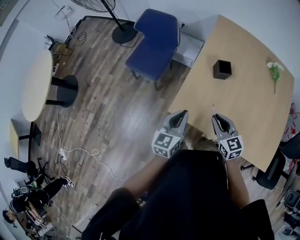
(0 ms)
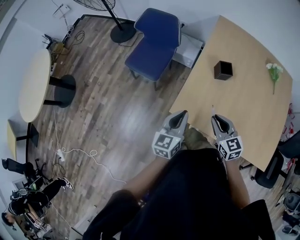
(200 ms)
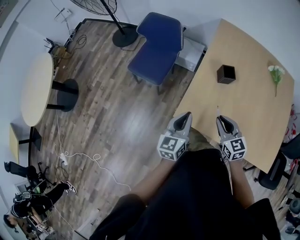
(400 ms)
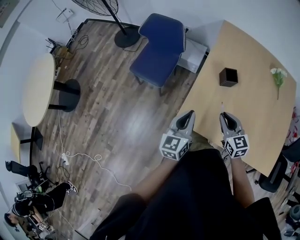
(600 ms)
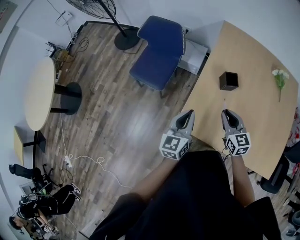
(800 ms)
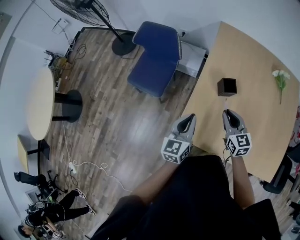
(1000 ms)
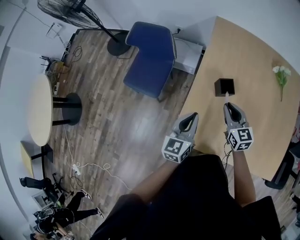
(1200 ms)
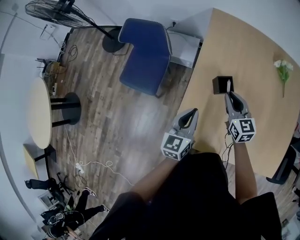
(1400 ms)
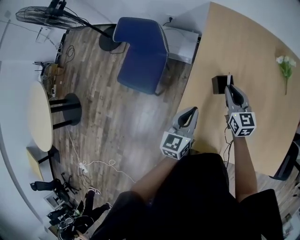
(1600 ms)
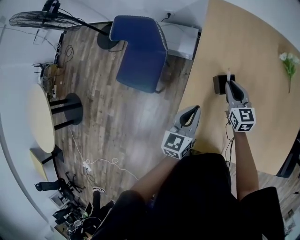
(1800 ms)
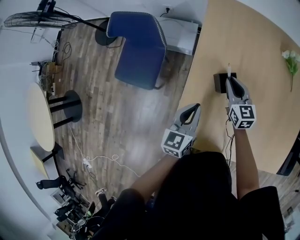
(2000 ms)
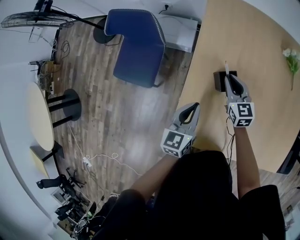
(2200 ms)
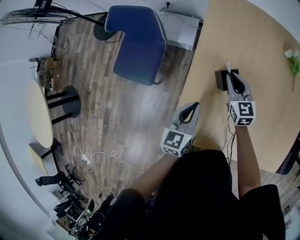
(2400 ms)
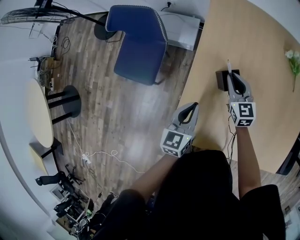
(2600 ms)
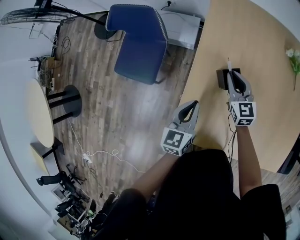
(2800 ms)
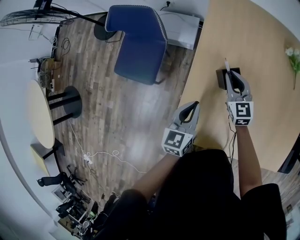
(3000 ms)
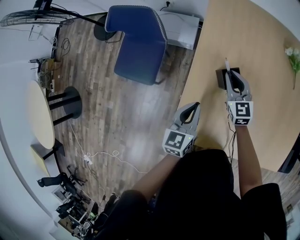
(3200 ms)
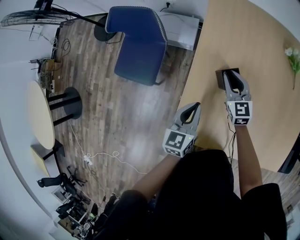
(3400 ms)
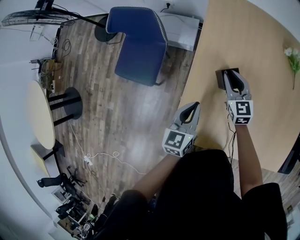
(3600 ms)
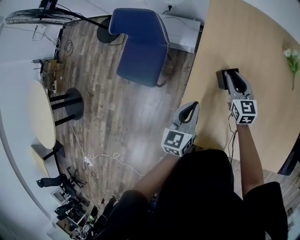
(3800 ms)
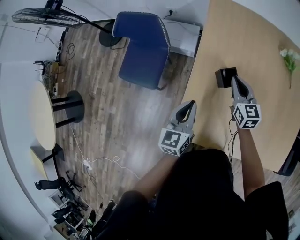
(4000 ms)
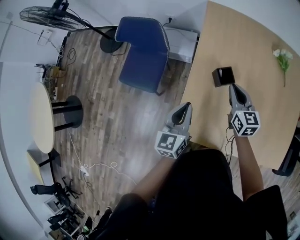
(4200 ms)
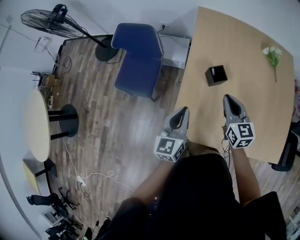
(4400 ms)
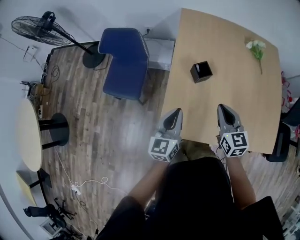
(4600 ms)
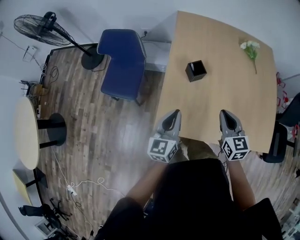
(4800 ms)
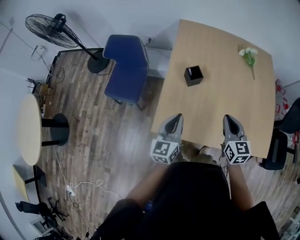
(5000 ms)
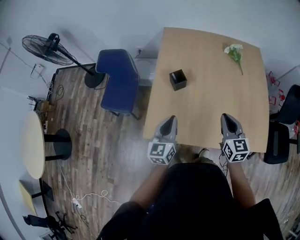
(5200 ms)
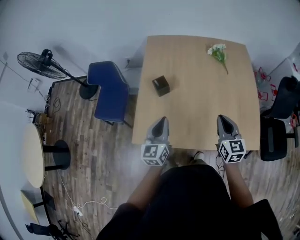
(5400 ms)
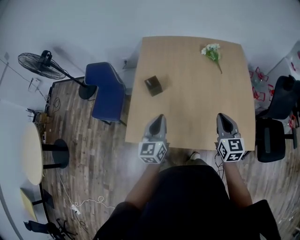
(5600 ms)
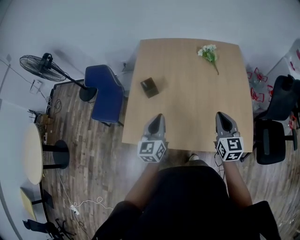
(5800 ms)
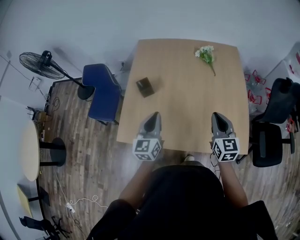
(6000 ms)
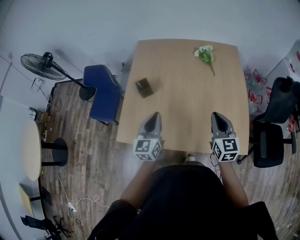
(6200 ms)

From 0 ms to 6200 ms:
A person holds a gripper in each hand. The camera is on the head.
From 0 ms to 1600 ms: Both grippers move forward, some 30 cm.
From 1600 ms to 3200 ms: The two grippers go roughly 5 cm downward.
From 3200 ms to 4600 ms: The left gripper heads backward and upward, covering roughly 20 cm; the right gripper travels backward and upward by some 30 cm.
From 4600 ms to 6200 ms: Both grippers travel together to the right, some 40 cm.

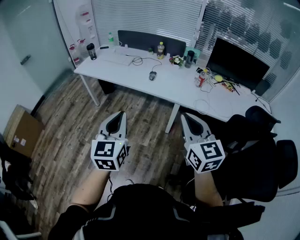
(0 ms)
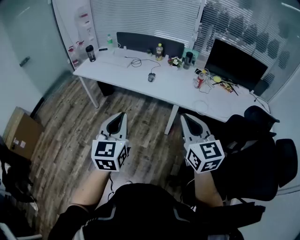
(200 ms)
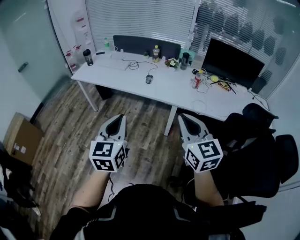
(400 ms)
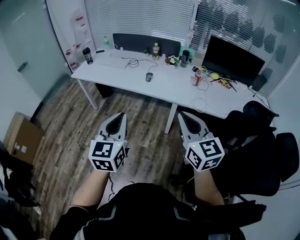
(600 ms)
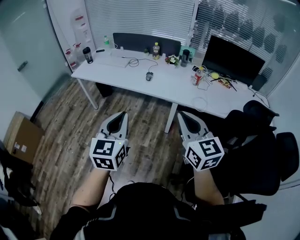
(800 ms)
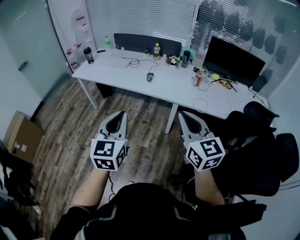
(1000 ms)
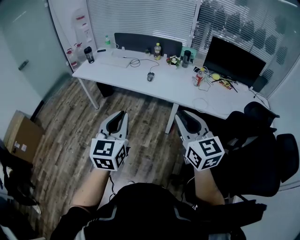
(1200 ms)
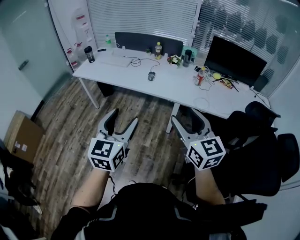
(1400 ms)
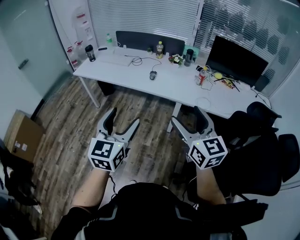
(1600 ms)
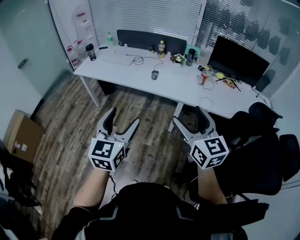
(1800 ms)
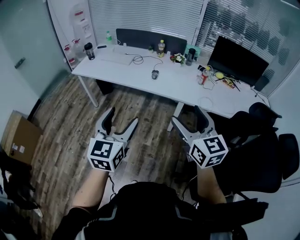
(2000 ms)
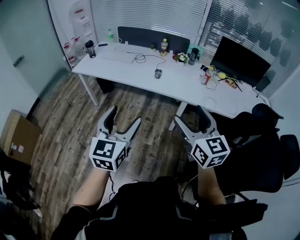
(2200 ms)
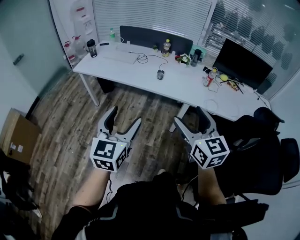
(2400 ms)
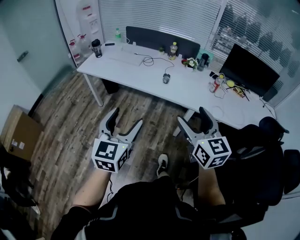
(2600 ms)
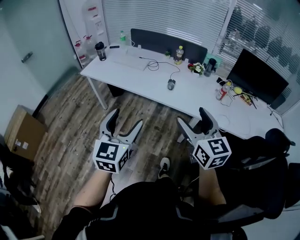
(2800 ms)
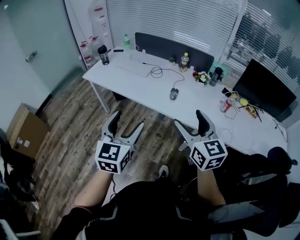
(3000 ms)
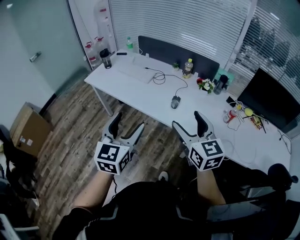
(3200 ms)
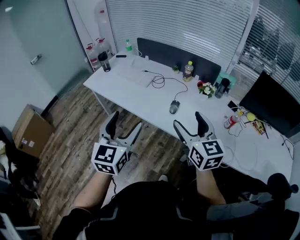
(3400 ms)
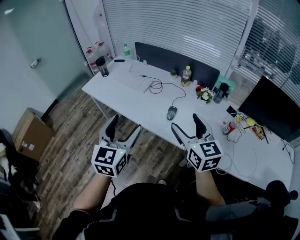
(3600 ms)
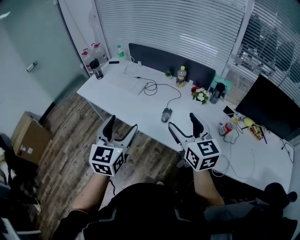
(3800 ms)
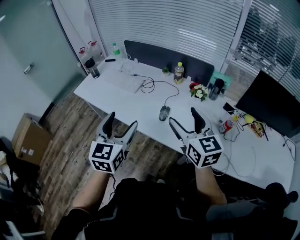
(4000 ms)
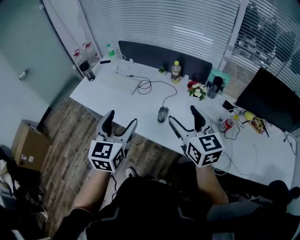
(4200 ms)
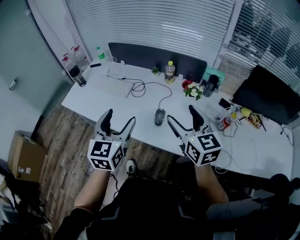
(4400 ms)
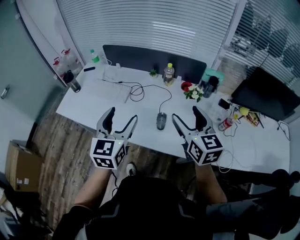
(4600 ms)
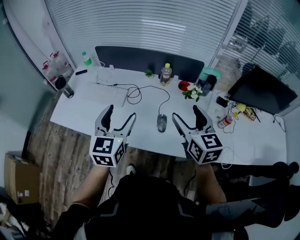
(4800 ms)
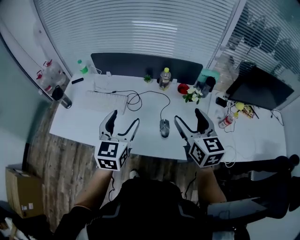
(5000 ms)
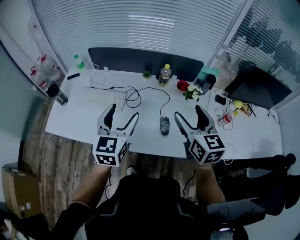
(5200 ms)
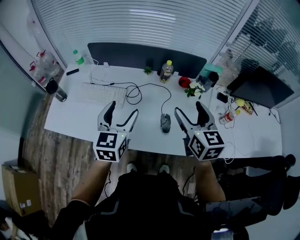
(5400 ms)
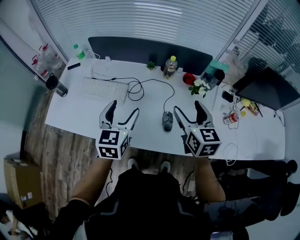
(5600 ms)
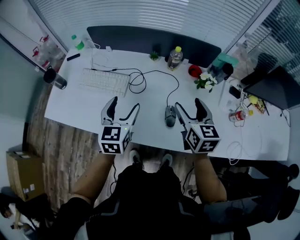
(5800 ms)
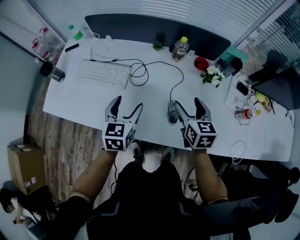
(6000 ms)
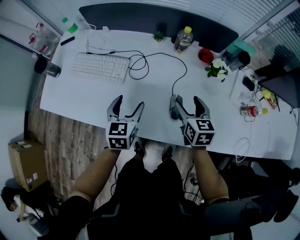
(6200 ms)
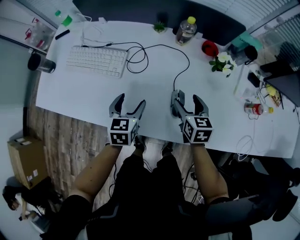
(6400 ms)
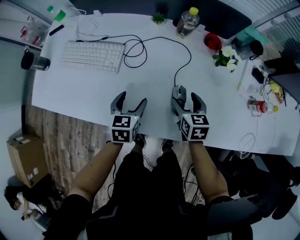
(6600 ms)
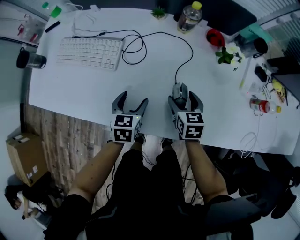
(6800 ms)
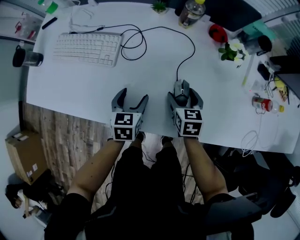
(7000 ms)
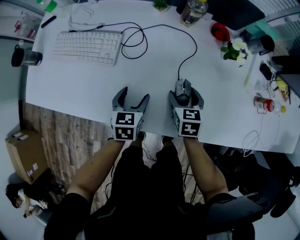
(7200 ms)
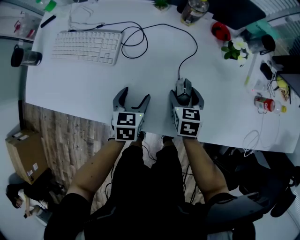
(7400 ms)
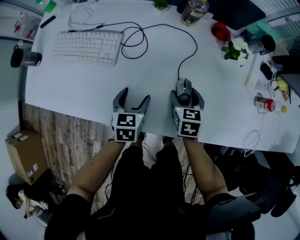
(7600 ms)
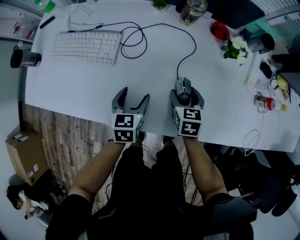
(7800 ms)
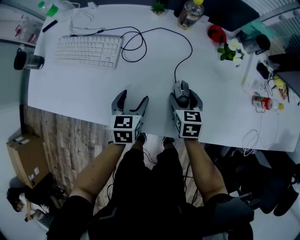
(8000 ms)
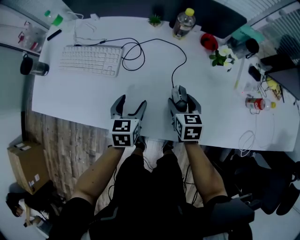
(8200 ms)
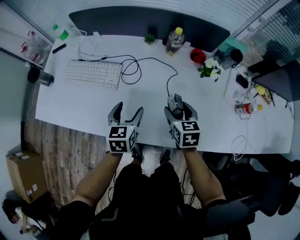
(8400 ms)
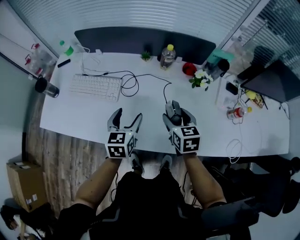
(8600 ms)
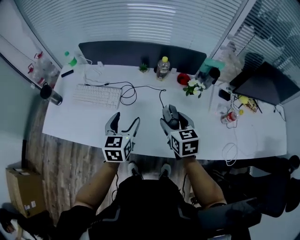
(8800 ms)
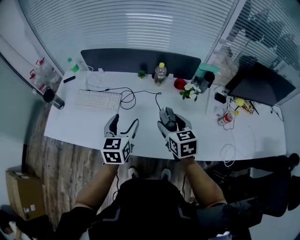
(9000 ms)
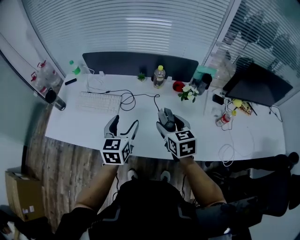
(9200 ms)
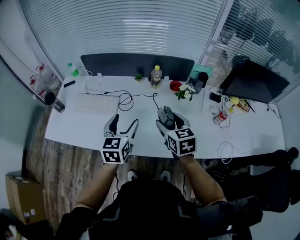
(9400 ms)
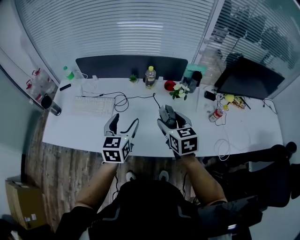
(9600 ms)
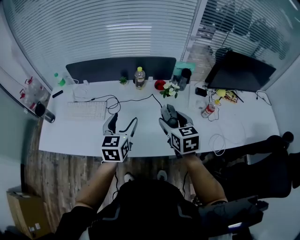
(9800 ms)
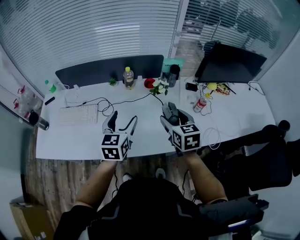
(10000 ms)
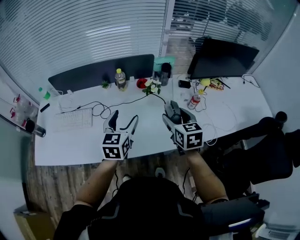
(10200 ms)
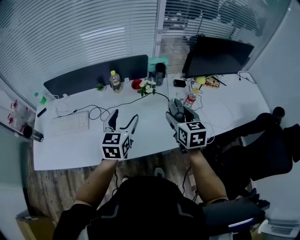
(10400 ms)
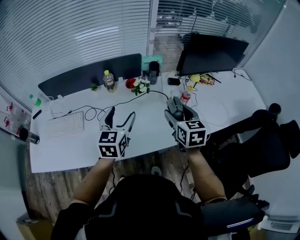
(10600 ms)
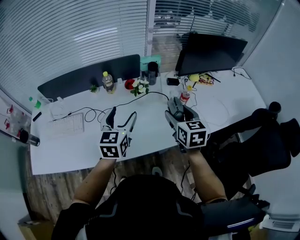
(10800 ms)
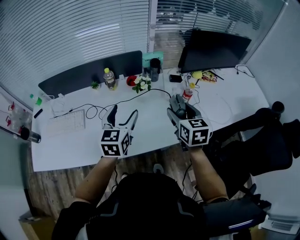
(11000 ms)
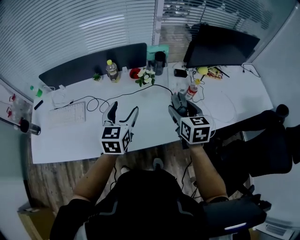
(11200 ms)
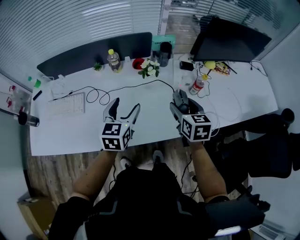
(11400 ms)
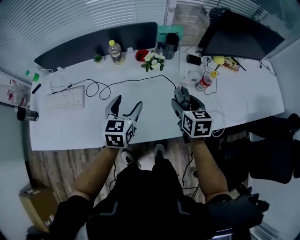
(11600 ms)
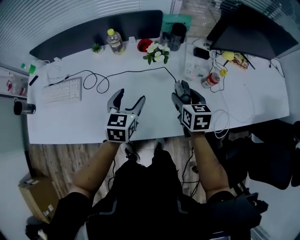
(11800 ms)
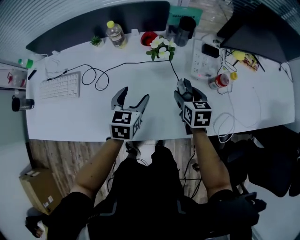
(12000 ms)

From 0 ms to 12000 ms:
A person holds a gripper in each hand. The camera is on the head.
From 0 ms to 1600 ms: The right gripper opens its fingers. The left gripper opens.
From 1600 ms to 3000 ms: The grippers both shift forward by about 20 cm.
From 3000 ms to 4400 ms: The left gripper is displaced forward by some 25 cm. The right gripper moves forward and to the right, approximately 25 cm.
From 4400 ms to 6000 ms: The left gripper shifts about 25 cm forward, downward and to the left, and turns by approximately 20 degrees; the right gripper goes roughly 25 cm downward and forward, and changes its angle by approximately 30 degrees.
From 6000 ms to 7600 ms: Both grippers travel together downward, roughly 20 cm. The right gripper turns by roughly 20 degrees.
From 7600 ms to 9000 ms: Both grippers move upward, about 25 cm. The left gripper turns by about 20 degrees; the right gripper swivels roughly 20 degrees.
From 9000 ms to 10400 ms: The grippers both shift to the right by roughly 20 cm. The right gripper turns by roughly 20 degrees; the left gripper swivels some 20 degrees.
From 10400 ms to 12000 ms: The grippers both shift downward and forward by about 25 cm. The right gripper changes its angle by roughly 20 degrees, while the left gripper rotates some 20 degrees.

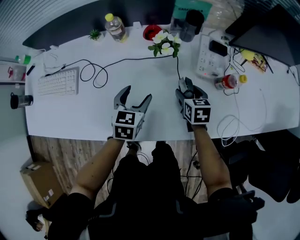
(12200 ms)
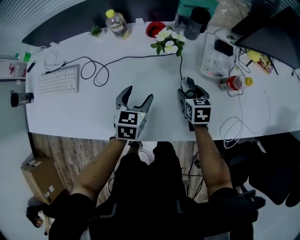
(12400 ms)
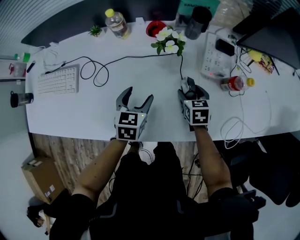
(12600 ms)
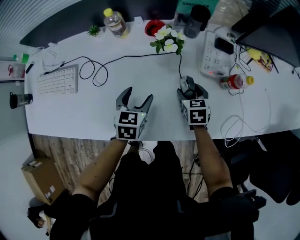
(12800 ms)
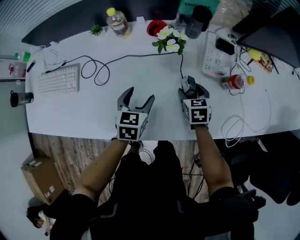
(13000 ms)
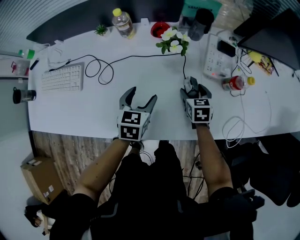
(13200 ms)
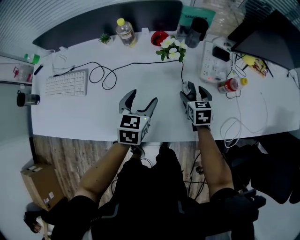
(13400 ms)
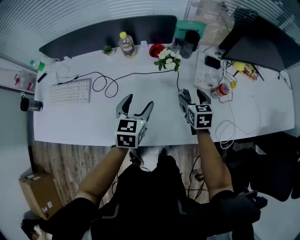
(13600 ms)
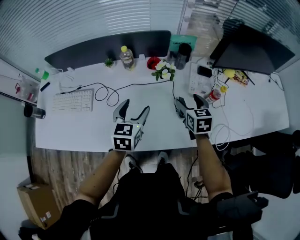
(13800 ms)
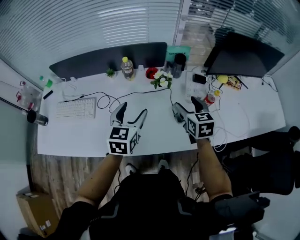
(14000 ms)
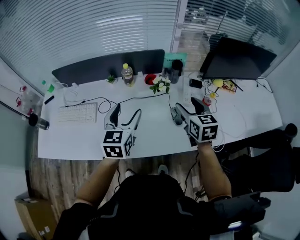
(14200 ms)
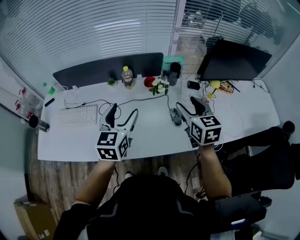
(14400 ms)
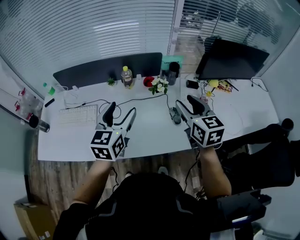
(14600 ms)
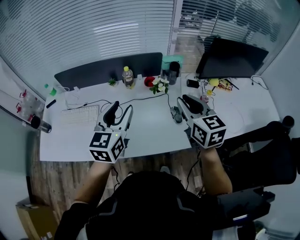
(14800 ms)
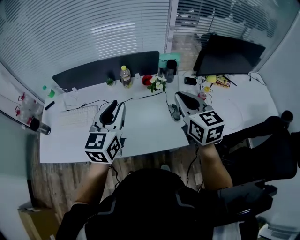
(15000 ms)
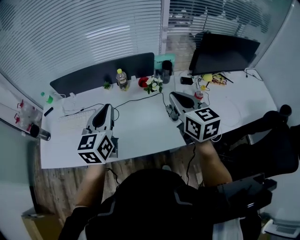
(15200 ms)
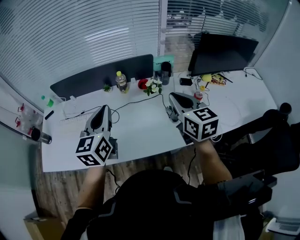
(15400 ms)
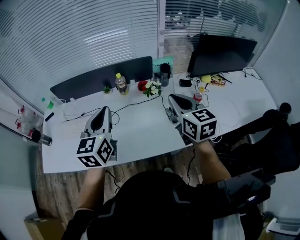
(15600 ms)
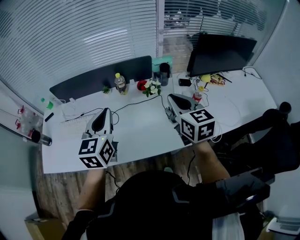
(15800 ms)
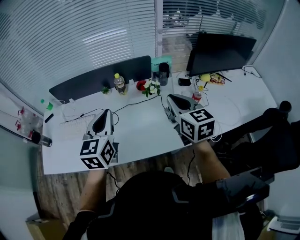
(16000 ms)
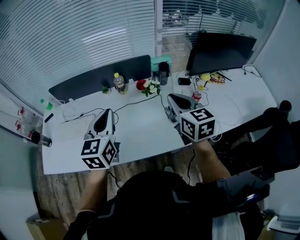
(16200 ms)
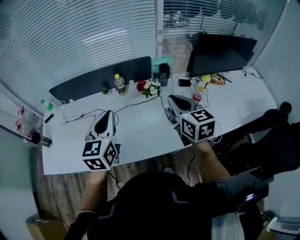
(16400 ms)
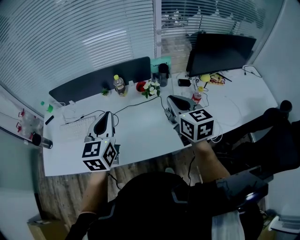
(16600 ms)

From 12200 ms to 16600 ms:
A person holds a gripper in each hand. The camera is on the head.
From 12200 ms to 13600 ms: Both grippers move upward, some 10 cm.
From 13600 ms to 15200 ms: The right gripper moves upward, some 30 cm, swivels some 30 degrees, and closes up. Meanwhile the left gripper shifts approximately 25 cm upward and to the left, changes its angle by some 20 degrees, and closes its fingers.
From 15200 ms to 16600 ms: The grippers stay close to where they were, moving slightly.

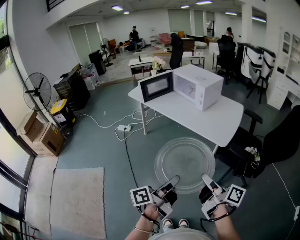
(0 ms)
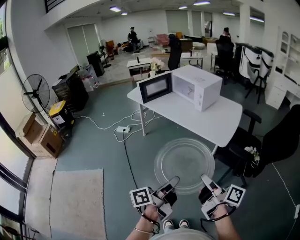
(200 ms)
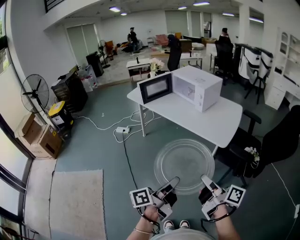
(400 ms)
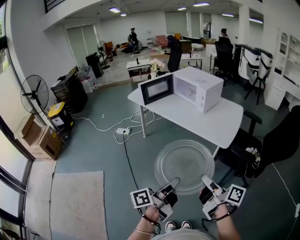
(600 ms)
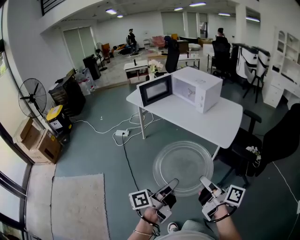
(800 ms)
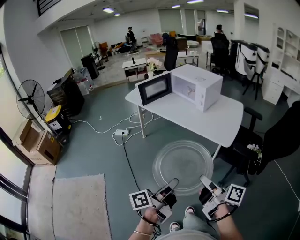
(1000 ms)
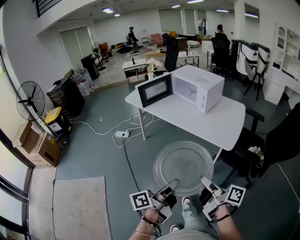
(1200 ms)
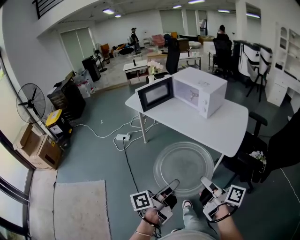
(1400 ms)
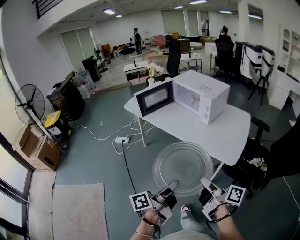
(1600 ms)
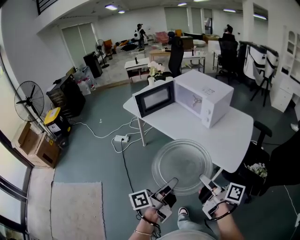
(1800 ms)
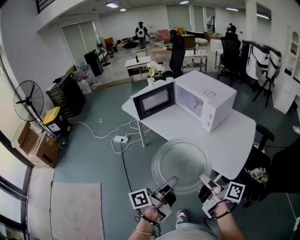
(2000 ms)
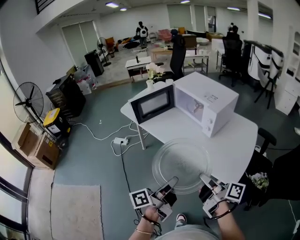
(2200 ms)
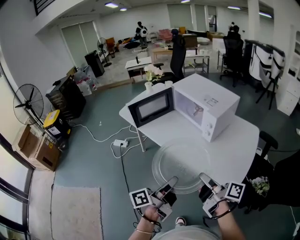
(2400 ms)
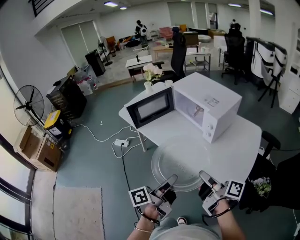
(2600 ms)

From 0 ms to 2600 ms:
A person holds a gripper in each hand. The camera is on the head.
From 0 ms to 1200 ms: The right gripper moves about 10 cm.
From 1200 ms to 2600 ms: The right gripper shifts by roughly 35 cm.
